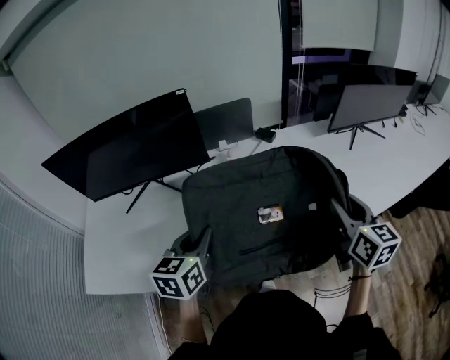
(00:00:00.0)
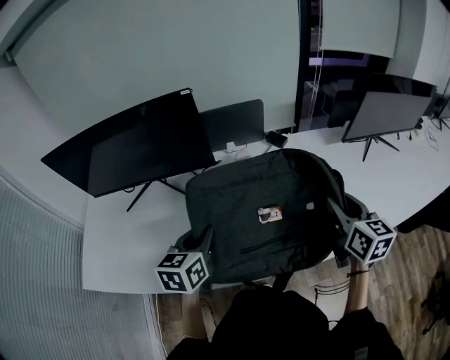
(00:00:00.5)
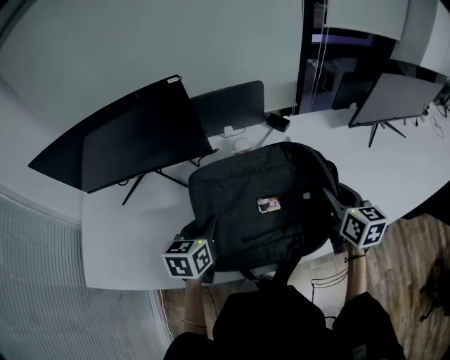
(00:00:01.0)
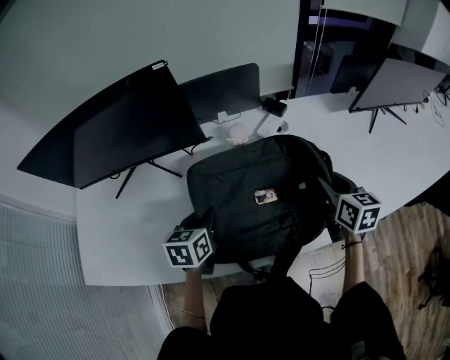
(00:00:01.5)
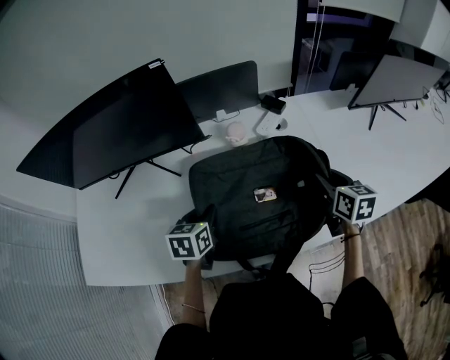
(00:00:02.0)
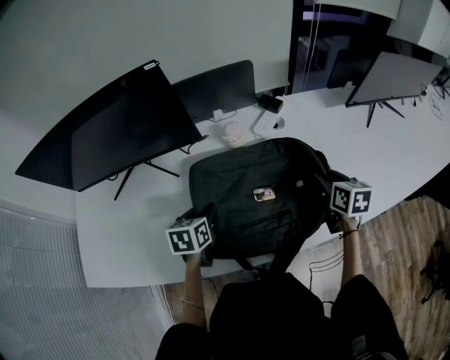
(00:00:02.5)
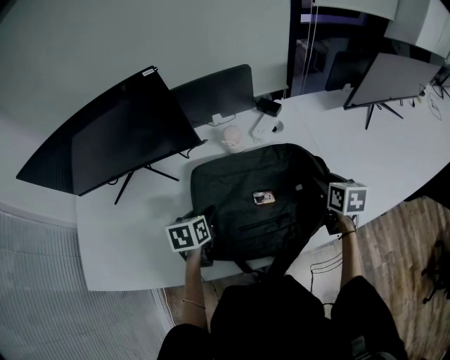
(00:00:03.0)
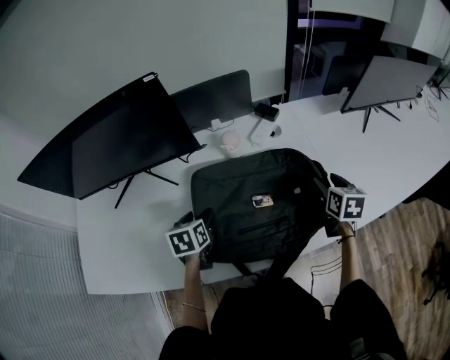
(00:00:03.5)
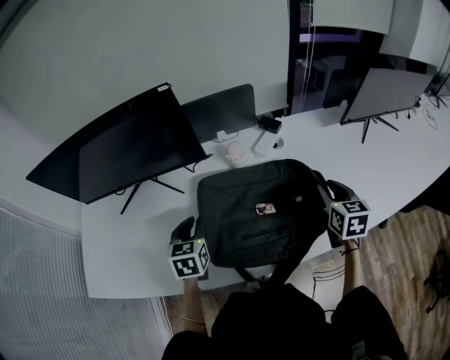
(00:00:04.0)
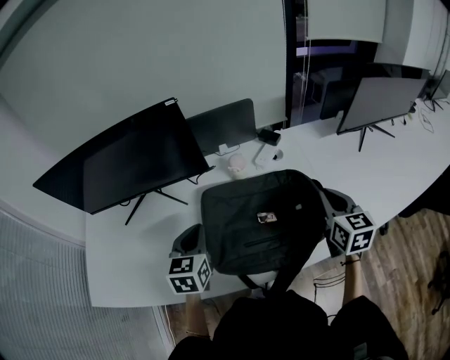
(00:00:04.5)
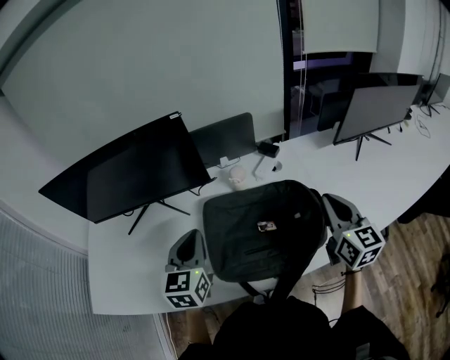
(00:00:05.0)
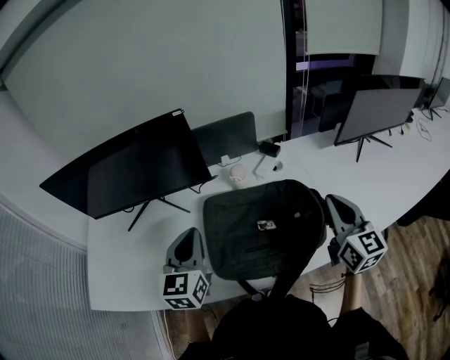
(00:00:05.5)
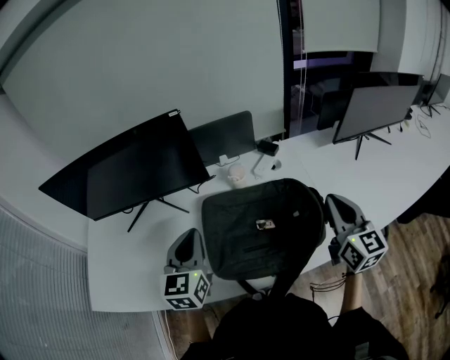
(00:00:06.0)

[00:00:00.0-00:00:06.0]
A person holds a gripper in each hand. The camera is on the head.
00:00:00.0 to 00:00:02.0: The left gripper goes approximately 20 cm downward and forward. The right gripper travels forward and downward by about 20 cm.
00:00:02.0 to 00:00:04.0: The right gripper opens, then closes once more, while the left gripper moves roughly 5 cm, and opens, then closes once more.
00:00:04.0 to 00:00:06.0: The left gripper shifts some 15 cm upward, and swivels roughly 20 degrees. Meanwhile the right gripper heads upward and backward, covering approximately 15 cm, changes its angle by roughly 30 degrees, and closes up.

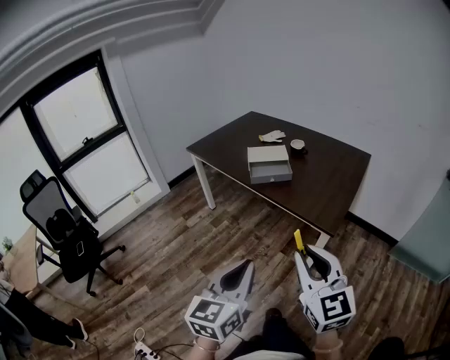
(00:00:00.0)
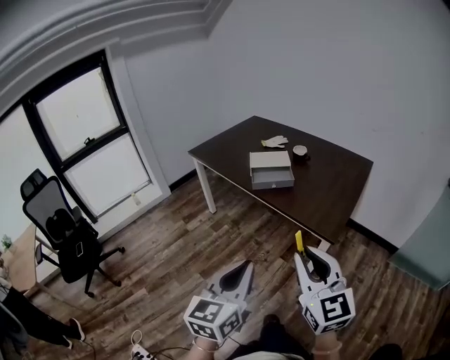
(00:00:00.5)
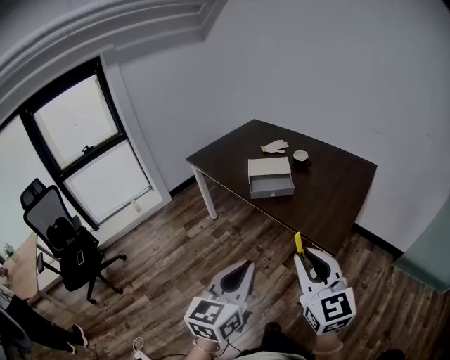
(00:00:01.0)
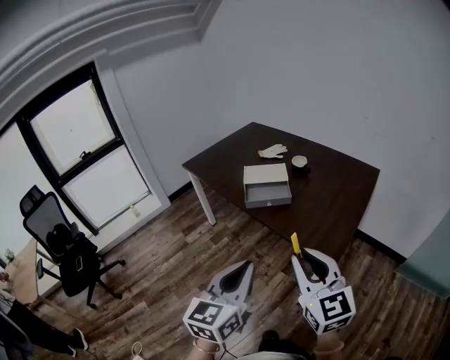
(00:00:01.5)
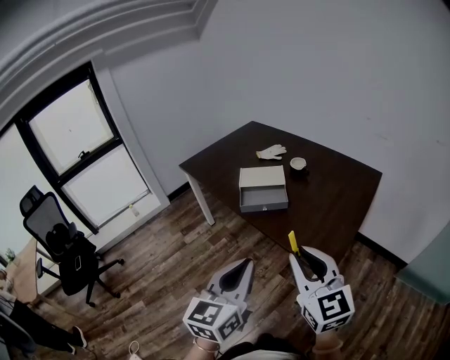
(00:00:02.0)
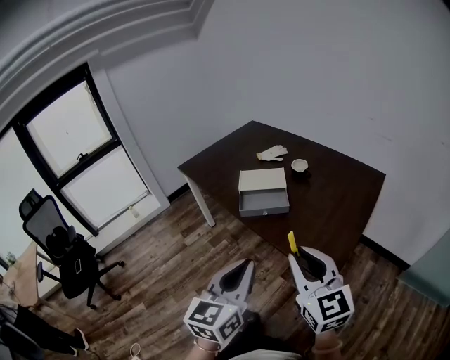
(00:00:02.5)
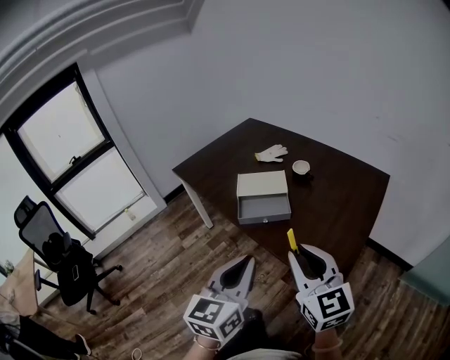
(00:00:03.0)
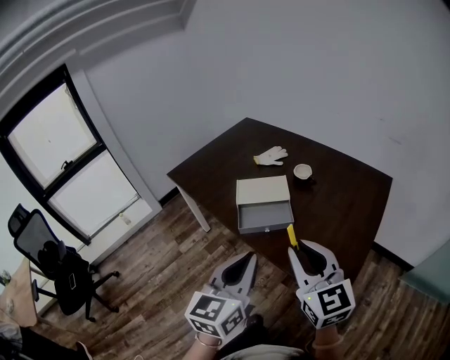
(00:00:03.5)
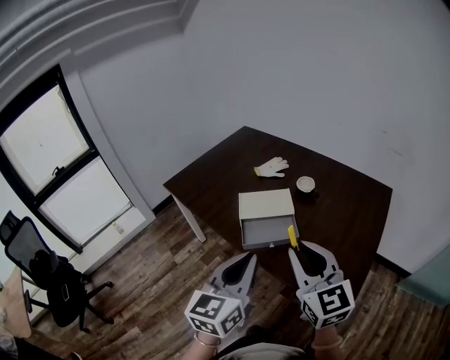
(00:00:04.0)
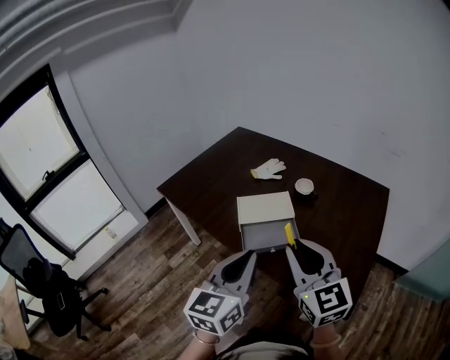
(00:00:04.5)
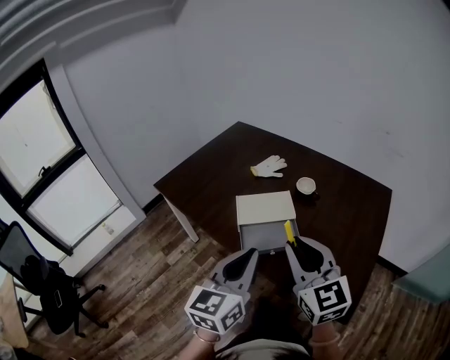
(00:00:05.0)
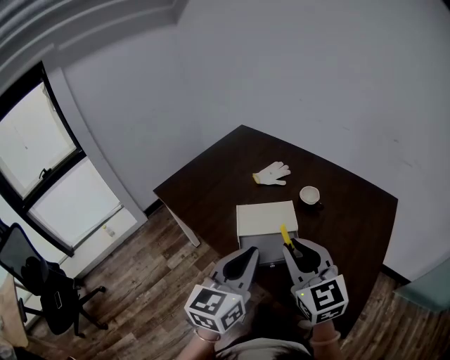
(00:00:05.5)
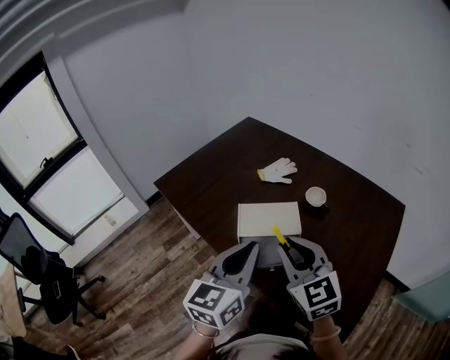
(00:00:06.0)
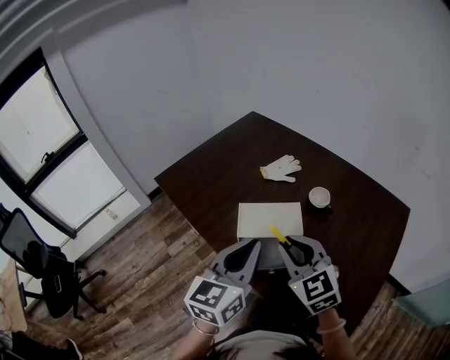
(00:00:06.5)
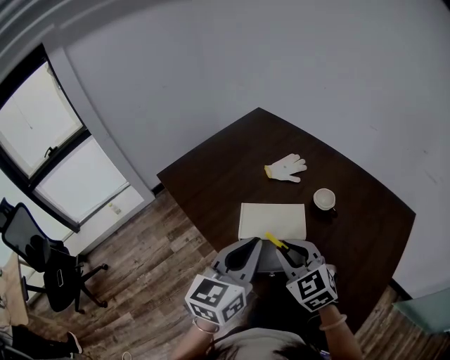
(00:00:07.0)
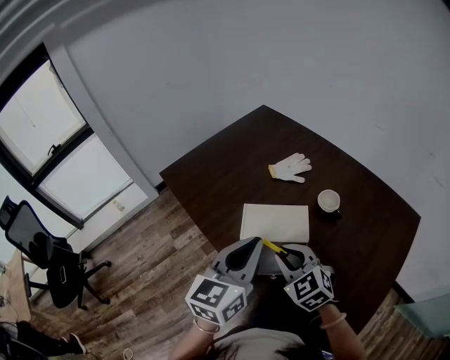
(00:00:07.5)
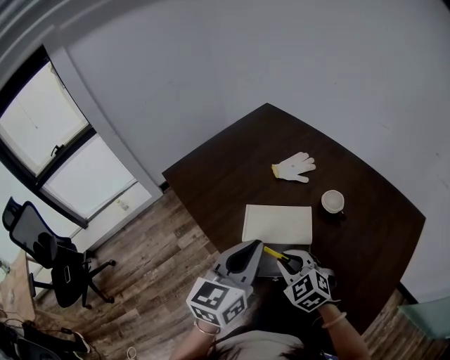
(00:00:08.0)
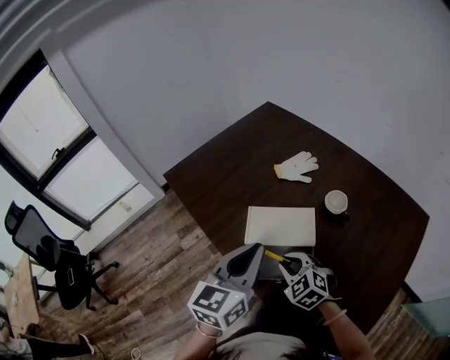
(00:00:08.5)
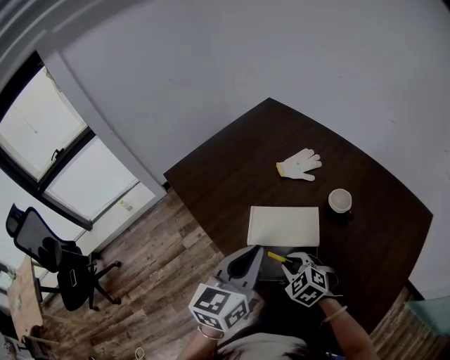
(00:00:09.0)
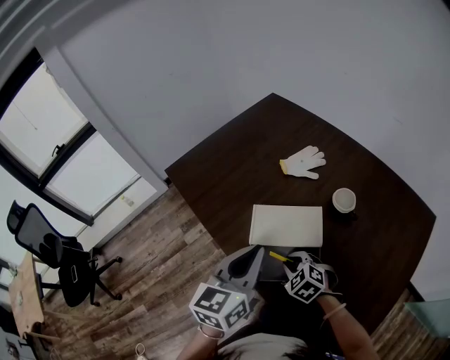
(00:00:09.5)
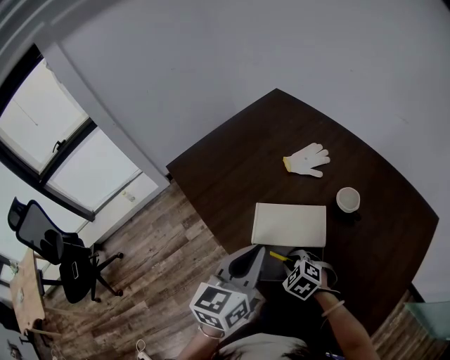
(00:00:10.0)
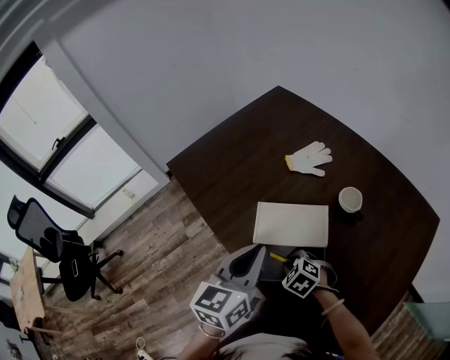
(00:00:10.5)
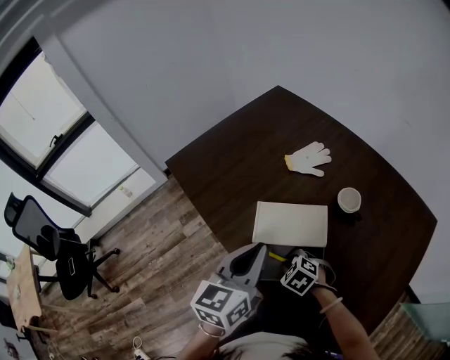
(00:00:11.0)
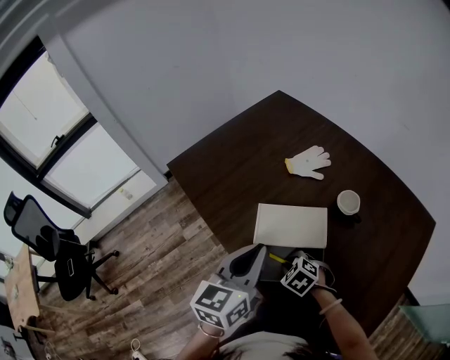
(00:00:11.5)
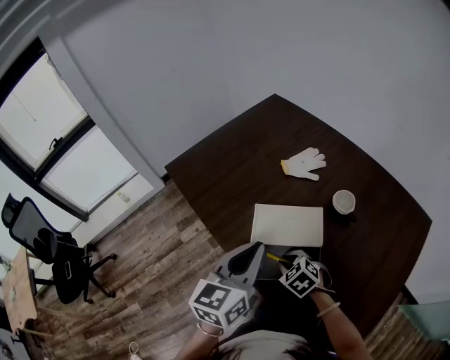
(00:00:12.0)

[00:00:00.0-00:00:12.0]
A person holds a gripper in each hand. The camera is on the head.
00:00:00.0 to 00:00:02.0: The left gripper heads forward and to the right, covering some 25 cm, while the right gripper travels forward by approximately 20 cm.
00:00:02.0 to 00:00:04.0: Both grippers move forward, some 25 cm.
00:00:04.0 to 00:00:06.0: Both grippers move forward, about 20 cm.
00:00:06.0 to 00:00:08.0: The right gripper is displaced downward and forward by roughly 20 cm, and rotates roughly 30 degrees, while the left gripper goes roughly 10 cm forward.
00:00:08.0 to 00:00:10.0: The right gripper travels downward by roughly 15 cm, and rotates some 20 degrees. The left gripper moves roughly 5 cm.
00:00:10.0 to 00:00:12.0: The grippers make only small movements.

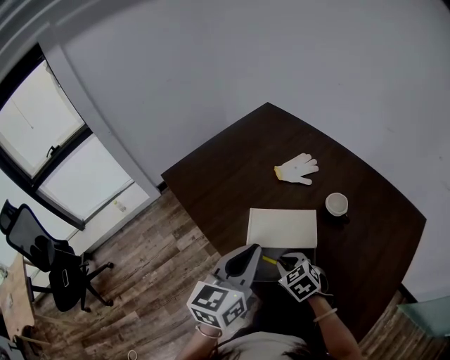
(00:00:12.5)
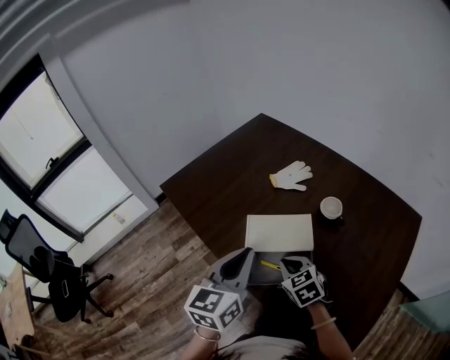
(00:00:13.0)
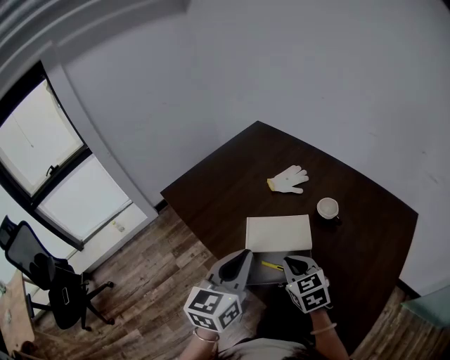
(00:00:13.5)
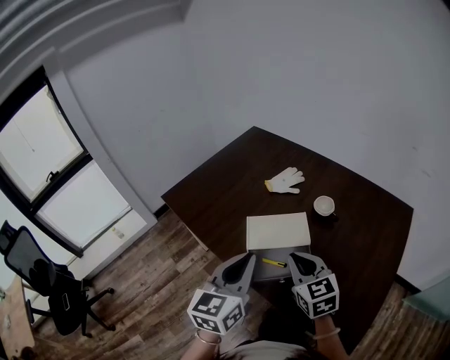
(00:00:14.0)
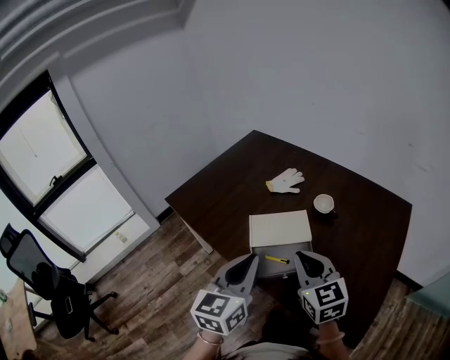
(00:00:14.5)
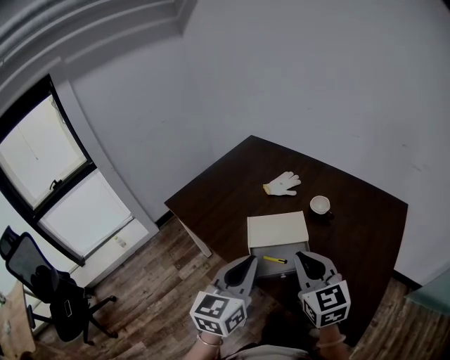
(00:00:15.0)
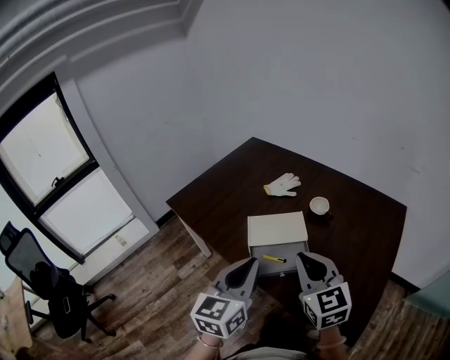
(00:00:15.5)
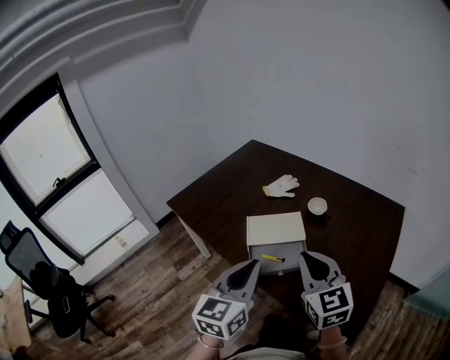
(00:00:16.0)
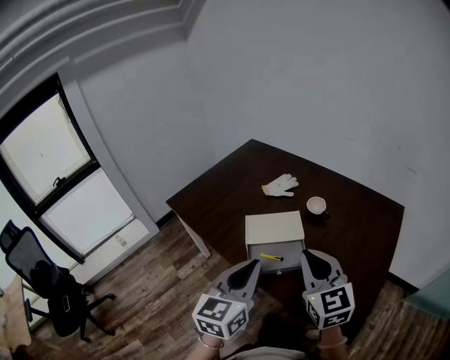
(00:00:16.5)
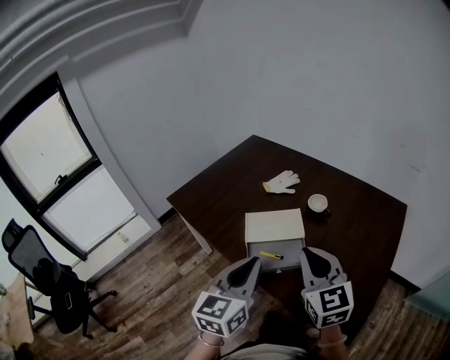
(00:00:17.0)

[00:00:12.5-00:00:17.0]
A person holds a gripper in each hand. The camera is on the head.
00:00:12.5 to 00:00:14.5: The left gripper is displaced backward by approximately 10 cm. The right gripper moves upward and backward, roughly 25 cm, and points its fingers roughly 30 degrees further upward.
00:00:14.5 to 00:00:17.0: The right gripper is displaced upward and backward by approximately 5 cm. The left gripper is displaced backward by roughly 5 cm.

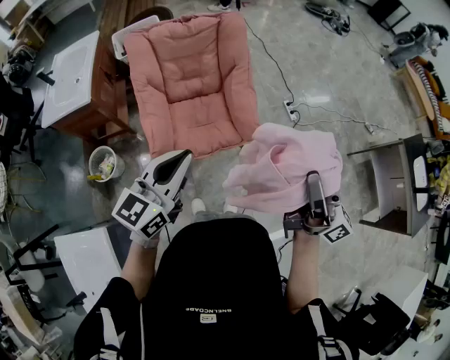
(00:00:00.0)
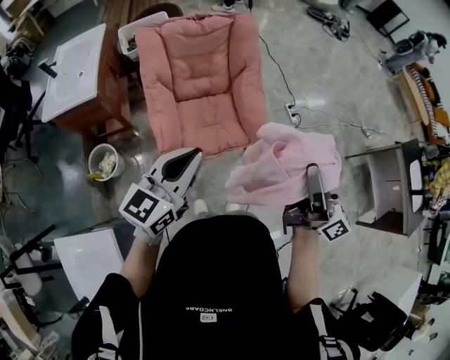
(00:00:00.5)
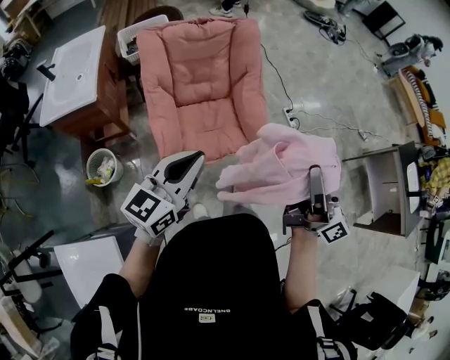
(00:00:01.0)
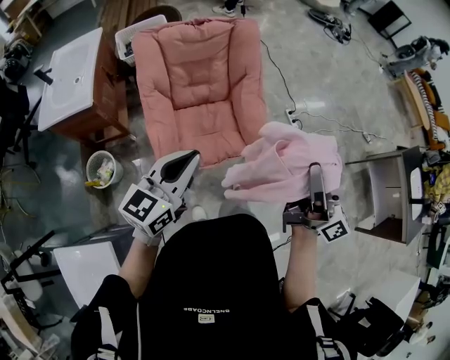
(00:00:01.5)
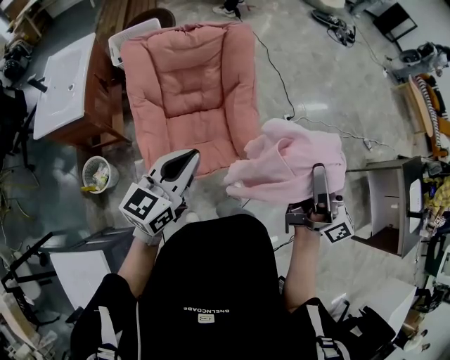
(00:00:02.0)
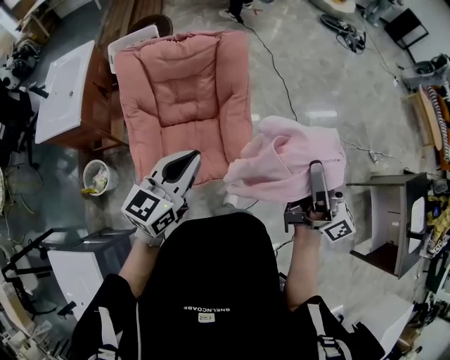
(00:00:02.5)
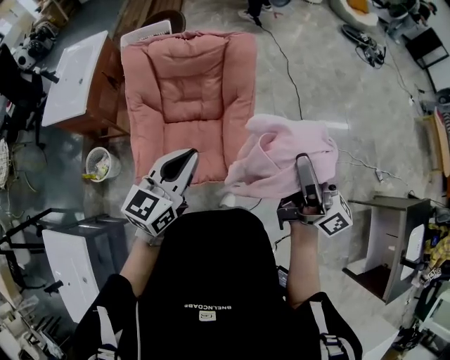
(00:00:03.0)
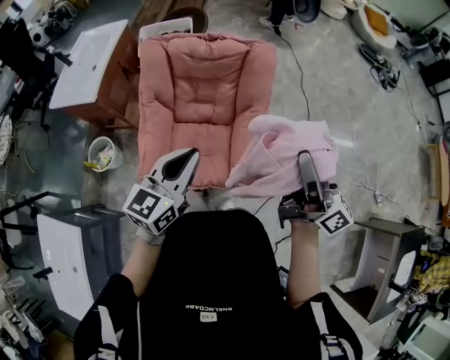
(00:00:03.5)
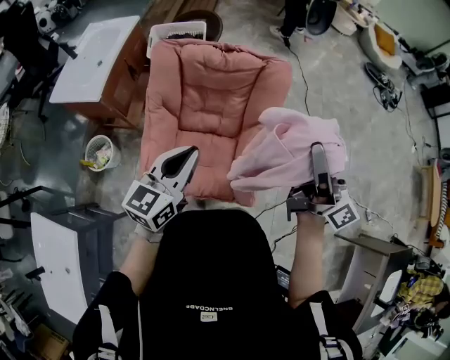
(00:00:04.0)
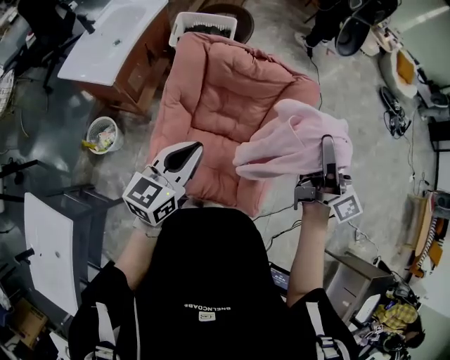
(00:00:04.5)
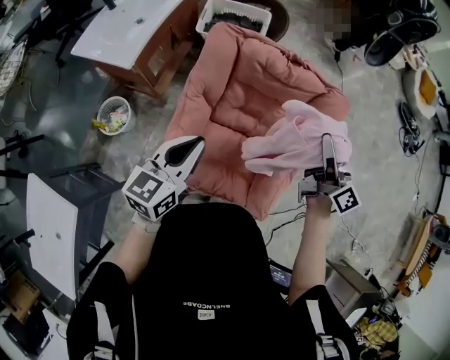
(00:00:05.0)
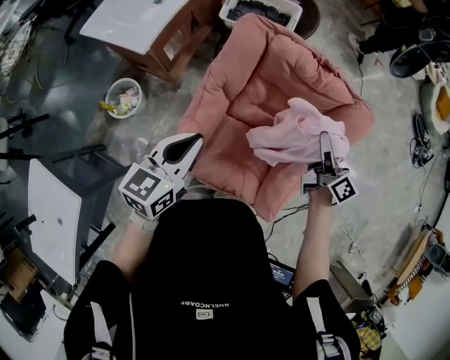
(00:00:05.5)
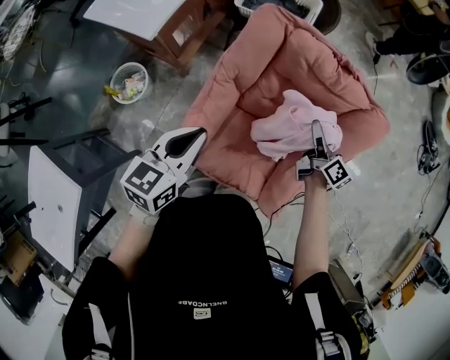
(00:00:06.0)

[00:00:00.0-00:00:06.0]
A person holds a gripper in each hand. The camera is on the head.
00:00:00.0 to 00:00:02.0: Both grippers move forward, some 15 cm.
00:00:02.0 to 00:00:04.0: The left gripper travels forward by about 15 cm, and changes its angle by about 20 degrees. Meanwhile the right gripper travels forward by approximately 30 cm, and turns by some 20 degrees.
00:00:04.0 to 00:00:06.0: The left gripper moves to the left, downward and forward, about 30 cm, and swivels roughly 20 degrees, while the right gripper is displaced downward, forward and to the left by about 50 cm, and tips its fingers downward by about 40 degrees.
